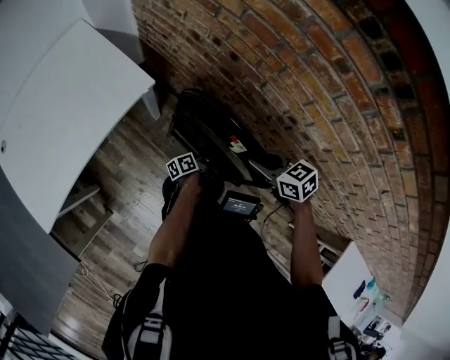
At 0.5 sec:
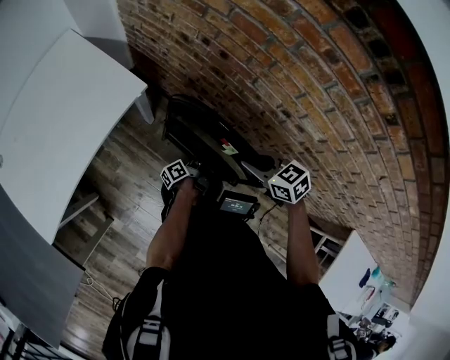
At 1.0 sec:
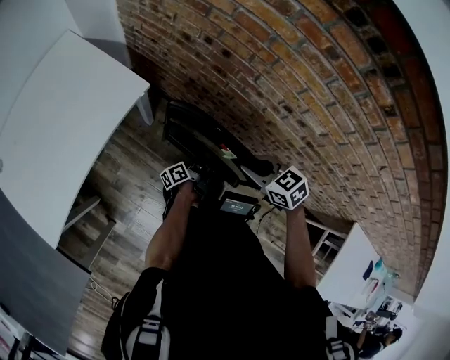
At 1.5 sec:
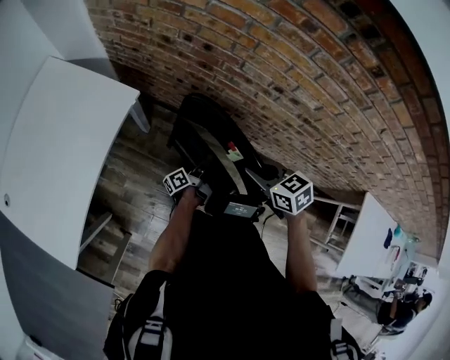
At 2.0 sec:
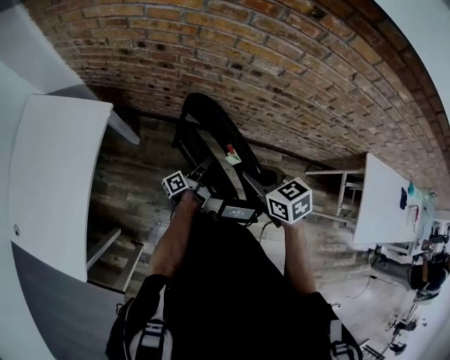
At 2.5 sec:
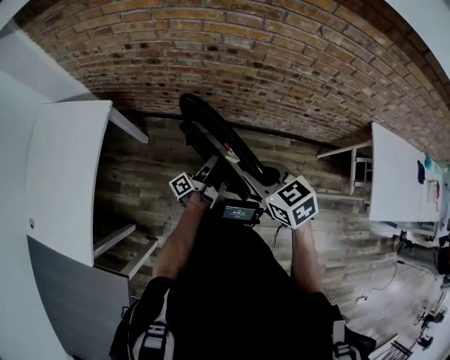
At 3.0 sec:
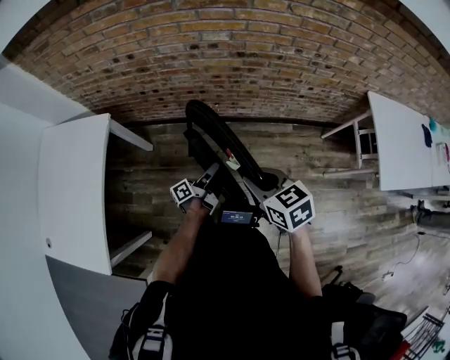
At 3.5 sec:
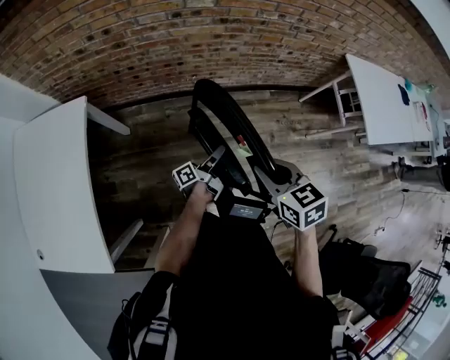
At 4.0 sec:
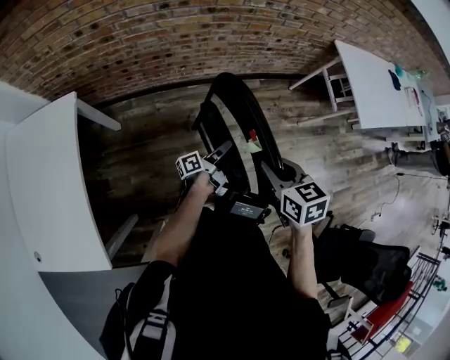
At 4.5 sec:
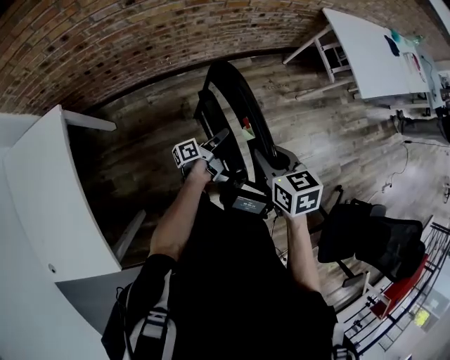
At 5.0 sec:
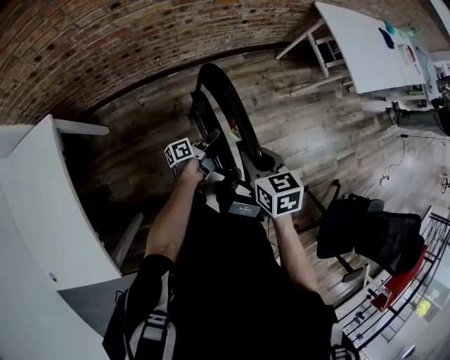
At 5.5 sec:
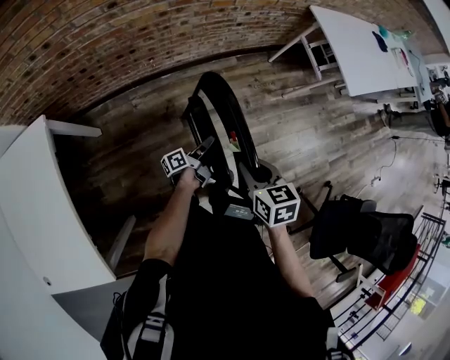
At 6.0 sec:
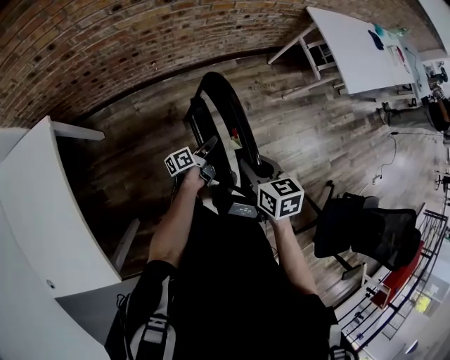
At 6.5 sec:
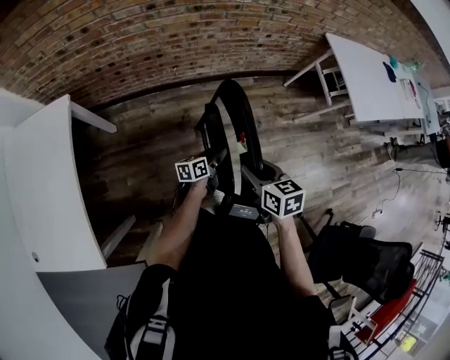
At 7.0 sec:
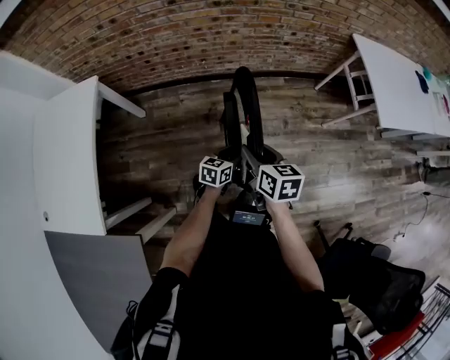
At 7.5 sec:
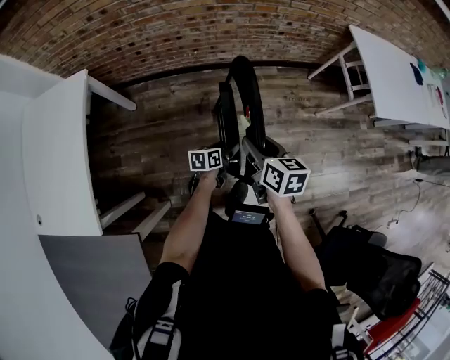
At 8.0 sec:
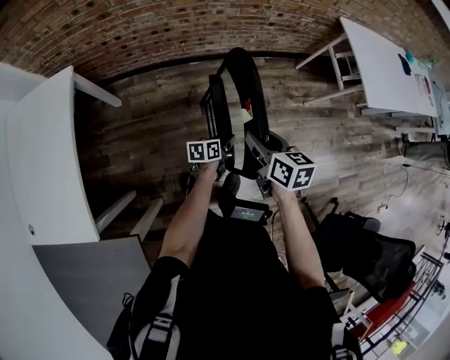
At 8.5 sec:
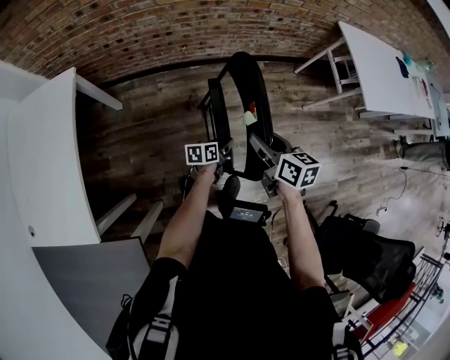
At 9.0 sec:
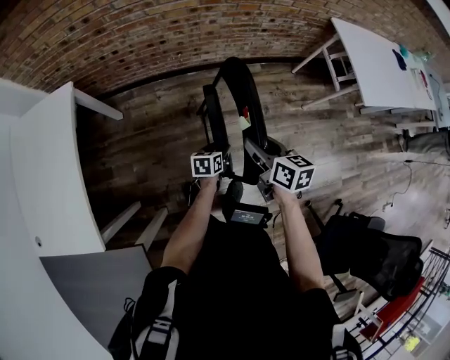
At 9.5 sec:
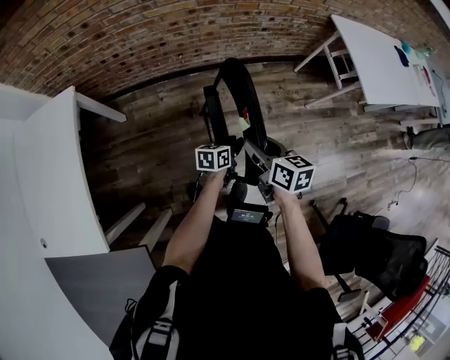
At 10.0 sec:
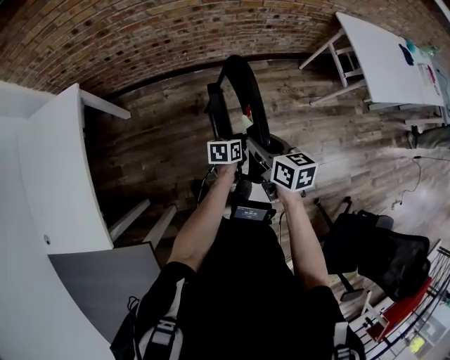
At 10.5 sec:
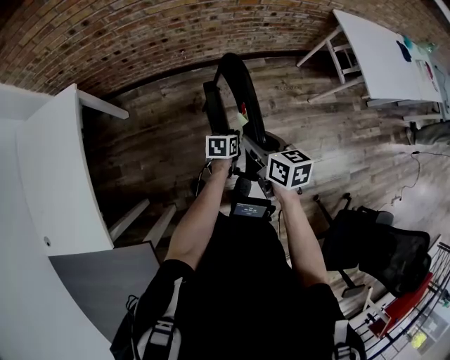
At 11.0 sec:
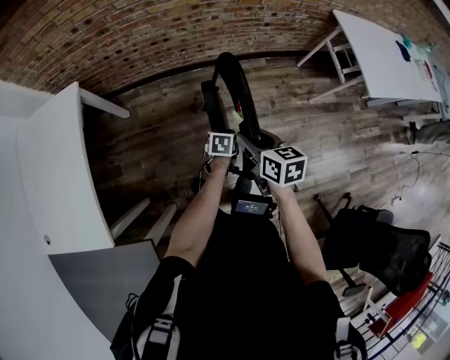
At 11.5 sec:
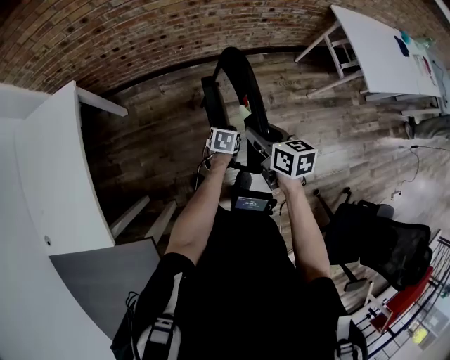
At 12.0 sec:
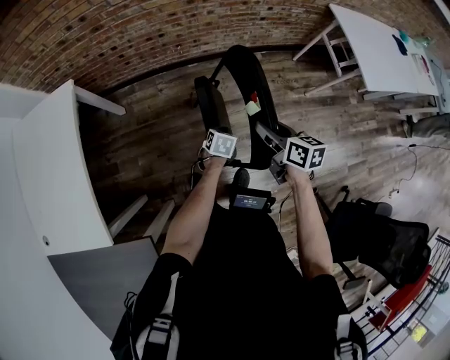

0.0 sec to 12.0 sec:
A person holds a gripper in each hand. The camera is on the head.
0.0 sec to 2.0 sec: The right gripper shifts by approximately 20 cm, and turns by approximately 40 degrees. Meanwhile the left gripper shifts by some 15 cm, changes its angle by approximately 30 degrees, and closes its fingers.
2.0 sec to 4.0 sec: The right gripper moves roughly 30 cm, and changes its angle by some 40 degrees. The left gripper moves approximately 30 cm, and changes its angle by some 30 degrees.
4.0 sec to 6.0 sec: The grippers both shift downward by roughly 5 cm.
6.0 sec to 8.0 sec: The left gripper heads backward, covering roughly 5 cm, and turns by approximately 30 degrees.
8.0 sec to 10.0 sec: The left gripper shifts by approximately 5 cm, and closes up.
10.0 sec to 12.0 sec: The left gripper travels to the left by about 5 cm, and swivels about 30 degrees.

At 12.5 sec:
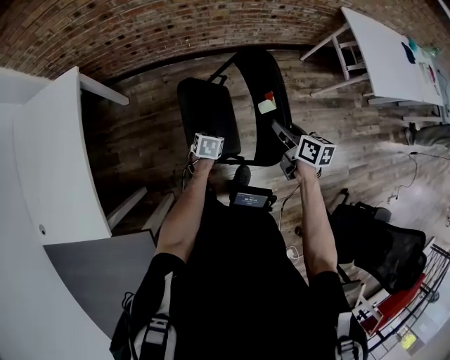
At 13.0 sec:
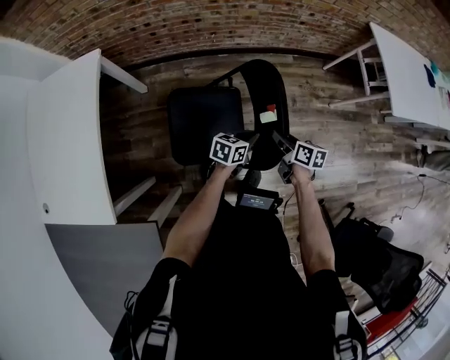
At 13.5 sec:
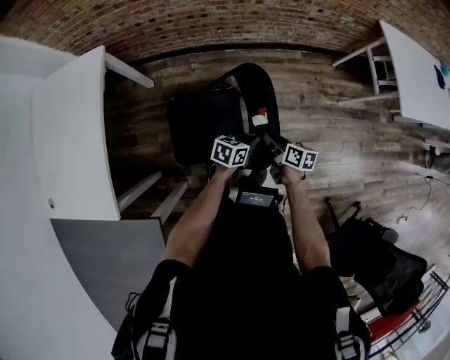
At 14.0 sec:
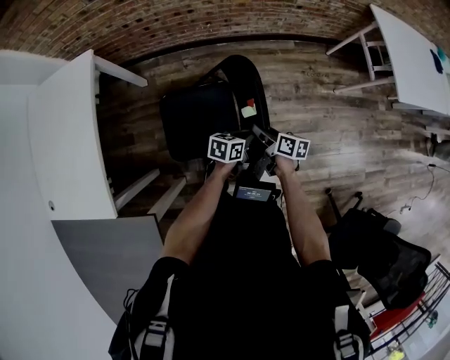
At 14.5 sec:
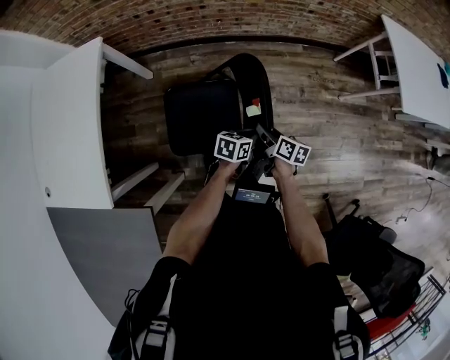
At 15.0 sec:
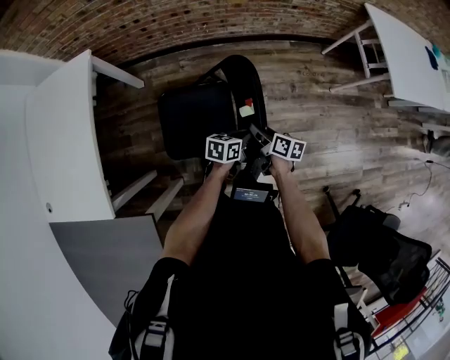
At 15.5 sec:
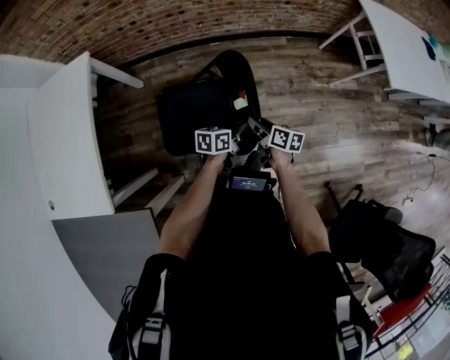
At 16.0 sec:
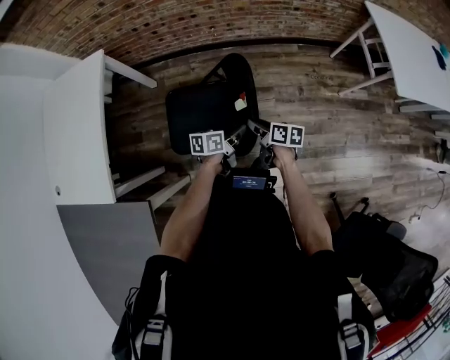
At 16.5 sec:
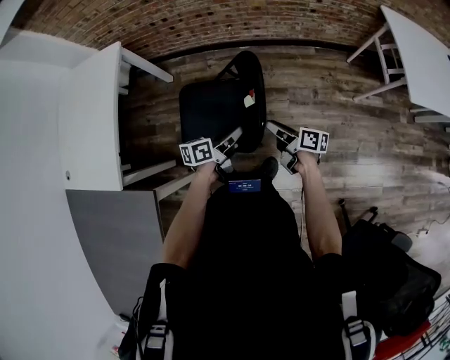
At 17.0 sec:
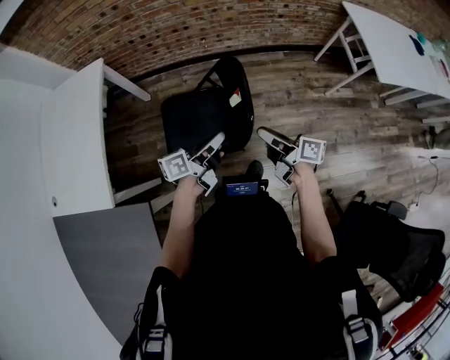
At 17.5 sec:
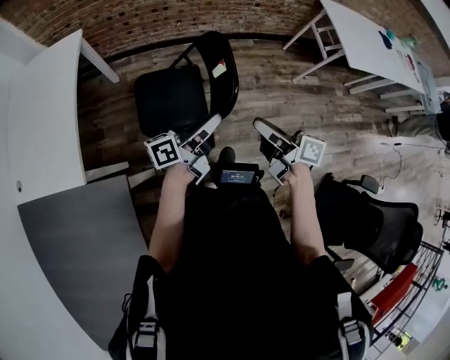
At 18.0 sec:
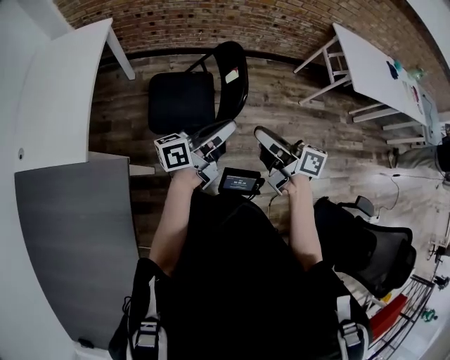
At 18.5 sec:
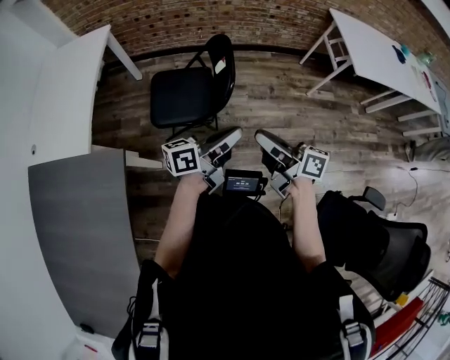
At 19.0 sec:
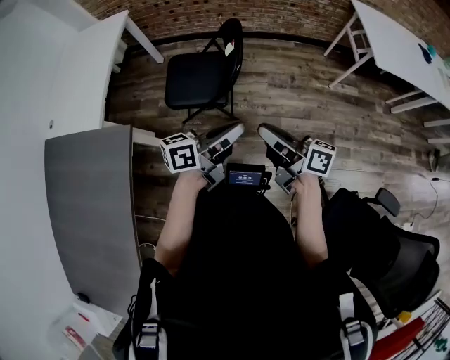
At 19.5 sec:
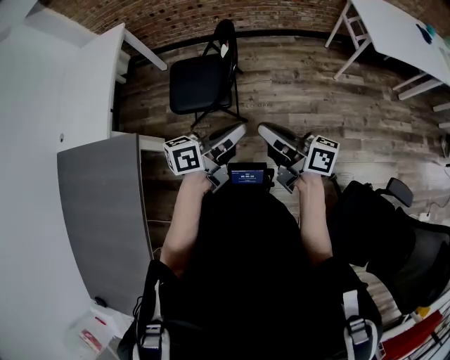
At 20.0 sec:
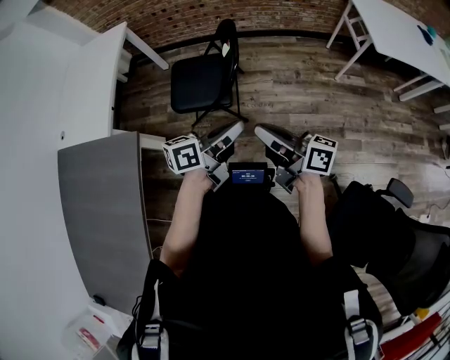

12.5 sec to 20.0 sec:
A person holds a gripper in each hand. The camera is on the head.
12.5 sec to 14.5 sec: The right gripper moves downward and to the left, approximately 15 cm, while the left gripper travels to the right and upward by some 10 cm, and changes its angle by roughly 30 degrees.
14.5 sec to 16.5 sec: Both grippers travel together upward, approximately 5 cm. The left gripper rotates approximately 30 degrees. Meanwhile the right gripper swivels some 20 degrees.
16.5 sec to 18.0 sec: The two grippers go some 30 cm upward and backward. The left gripper tilts its fingers roughly 30 degrees upward.
18.0 sec to 20.0 sec: The left gripper heads to the right and backward, covering about 15 cm, and changes its angle by approximately 20 degrees. Meanwhile the right gripper travels backward and to the right by about 15 cm.

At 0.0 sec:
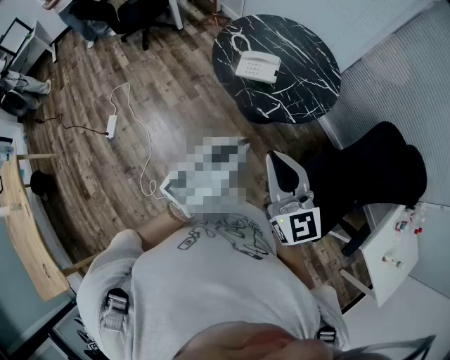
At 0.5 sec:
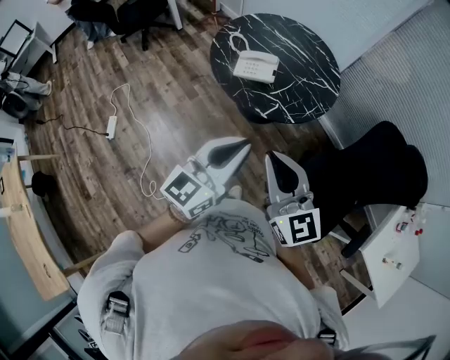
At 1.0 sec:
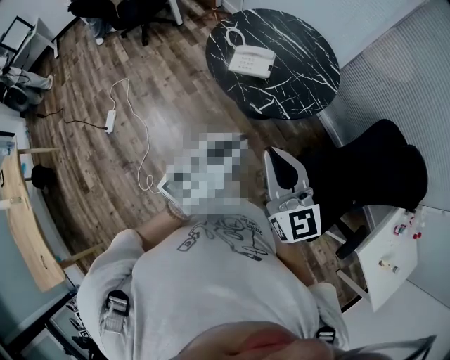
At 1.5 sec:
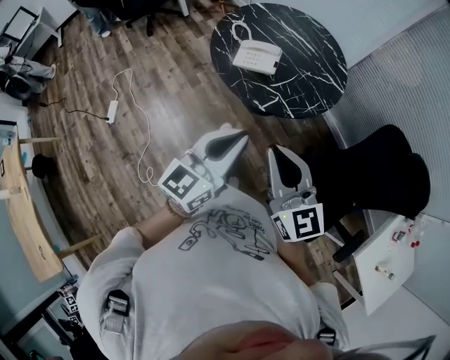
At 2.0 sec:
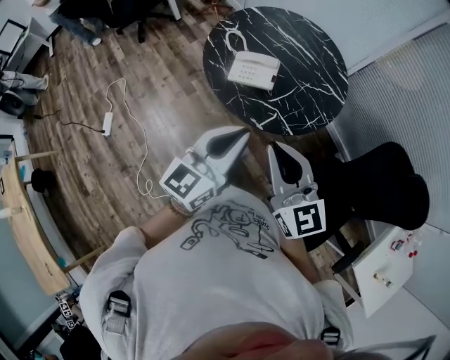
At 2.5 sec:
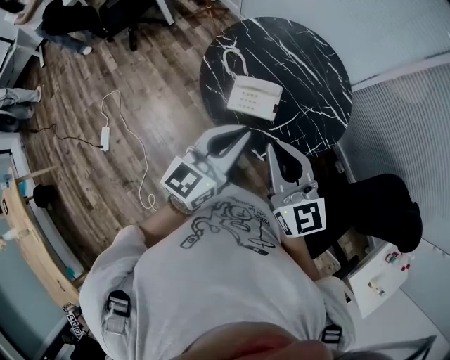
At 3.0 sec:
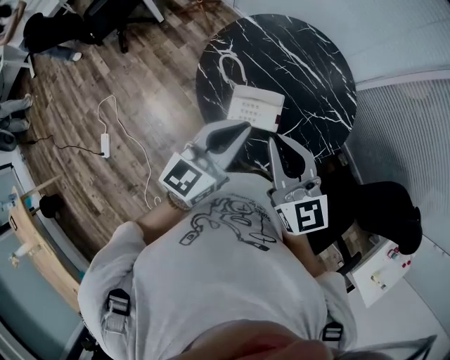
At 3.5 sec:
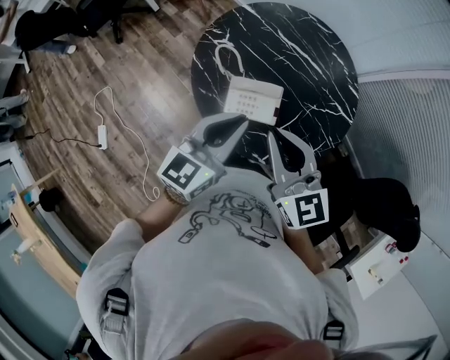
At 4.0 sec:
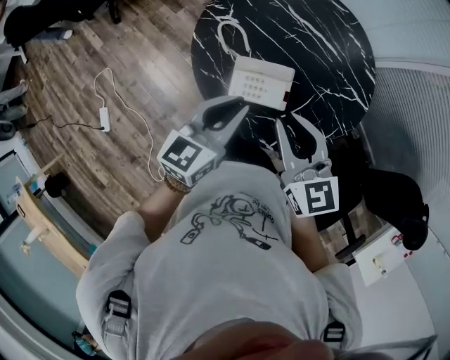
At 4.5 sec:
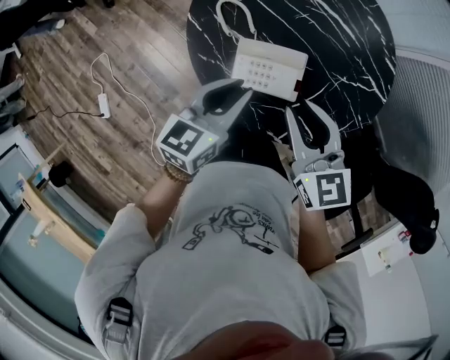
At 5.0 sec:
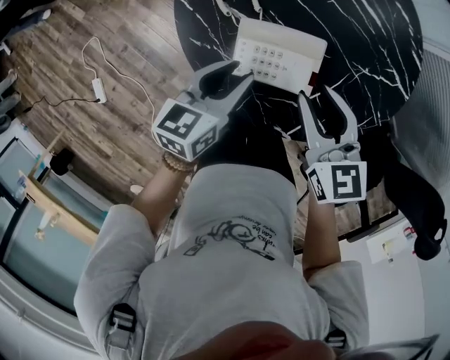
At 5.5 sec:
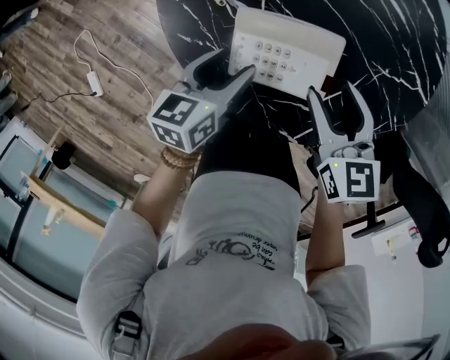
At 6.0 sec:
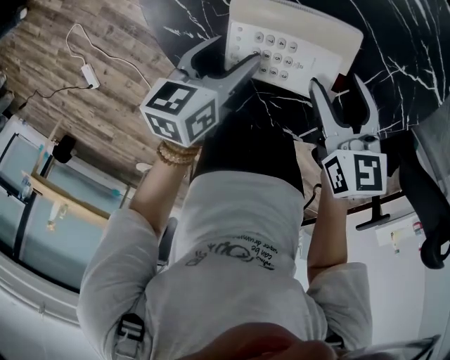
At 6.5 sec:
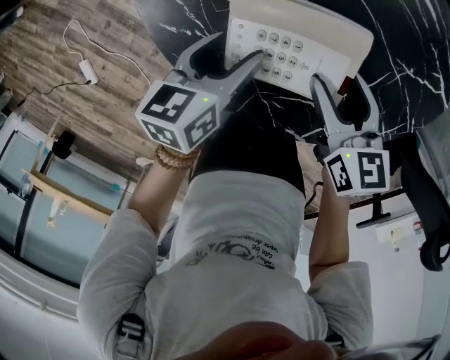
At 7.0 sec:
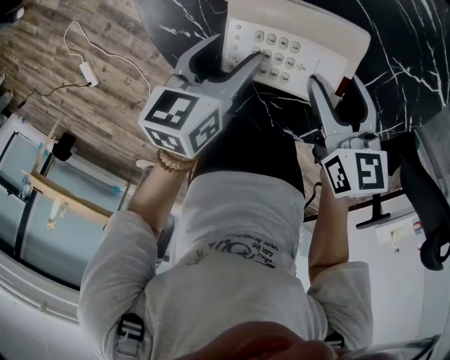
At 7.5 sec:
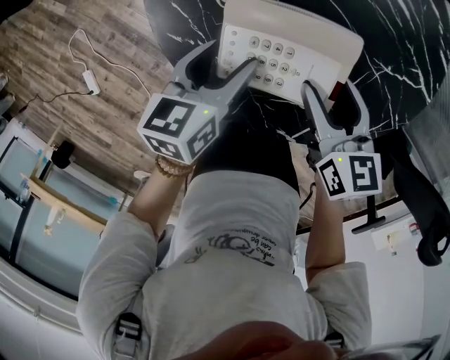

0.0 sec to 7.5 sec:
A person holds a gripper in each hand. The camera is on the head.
0.0 sec to 2.0 sec: Both grippers travel together forward, about 15 cm.
2.0 sec to 4.0 sec: The left gripper moves forward and downward, some 35 cm. Meanwhile the right gripper travels forward by roughly 35 cm.
4.0 sec to 5.5 sec: Both grippers move downward, some 30 cm. The left gripper swivels about 30 degrees, and opens its fingers. The right gripper rotates some 20 degrees, and opens its fingers.
5.5 sec to 7.5 sec: The right gripper travels downward and back again, approximately 10 cm each way.
